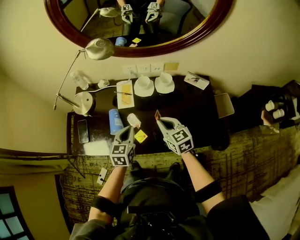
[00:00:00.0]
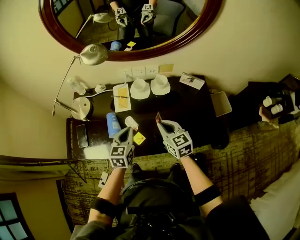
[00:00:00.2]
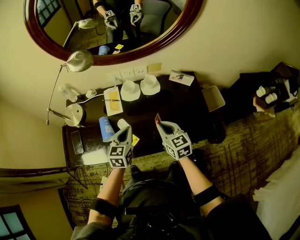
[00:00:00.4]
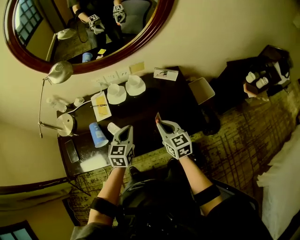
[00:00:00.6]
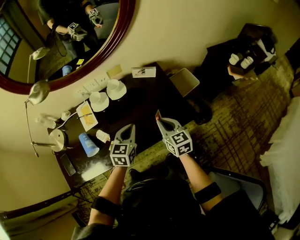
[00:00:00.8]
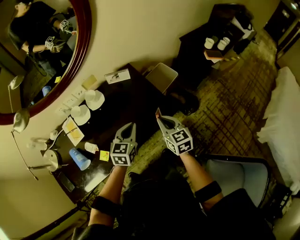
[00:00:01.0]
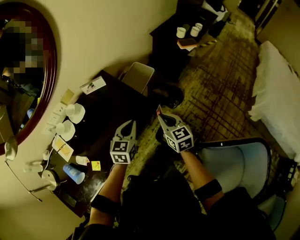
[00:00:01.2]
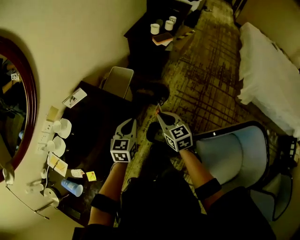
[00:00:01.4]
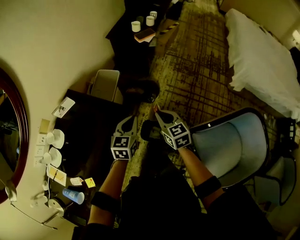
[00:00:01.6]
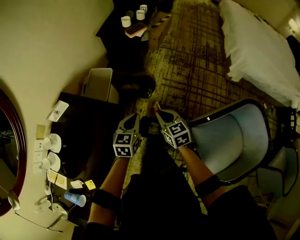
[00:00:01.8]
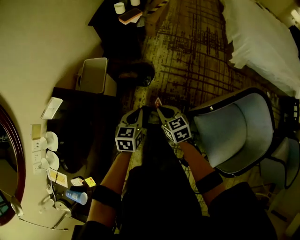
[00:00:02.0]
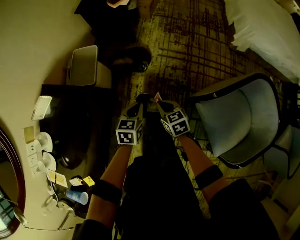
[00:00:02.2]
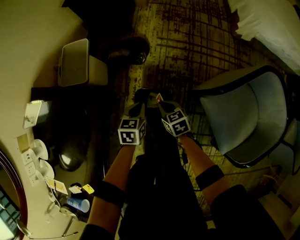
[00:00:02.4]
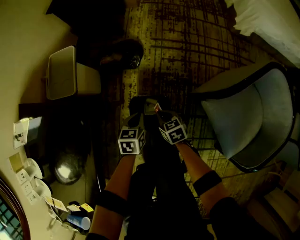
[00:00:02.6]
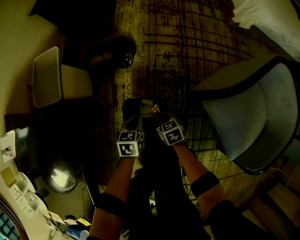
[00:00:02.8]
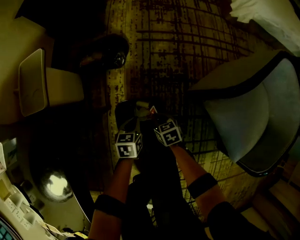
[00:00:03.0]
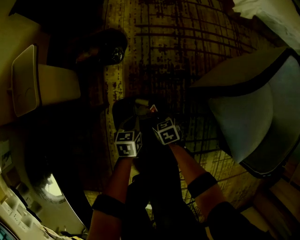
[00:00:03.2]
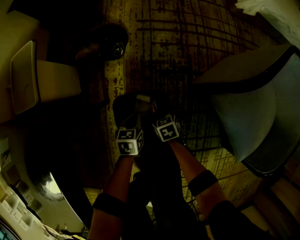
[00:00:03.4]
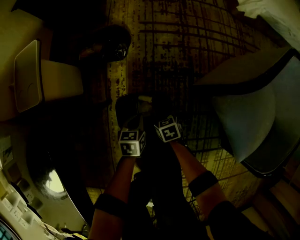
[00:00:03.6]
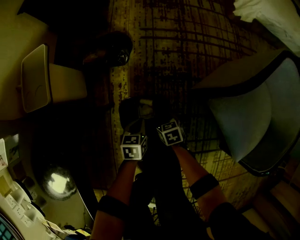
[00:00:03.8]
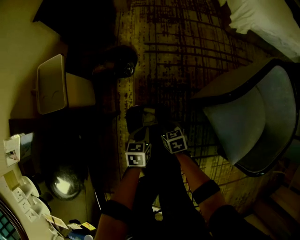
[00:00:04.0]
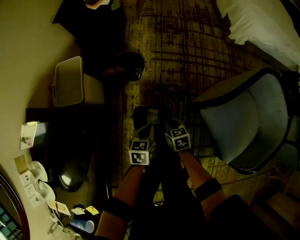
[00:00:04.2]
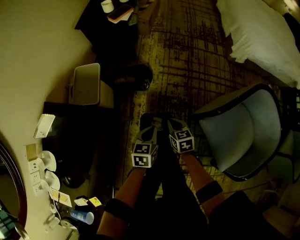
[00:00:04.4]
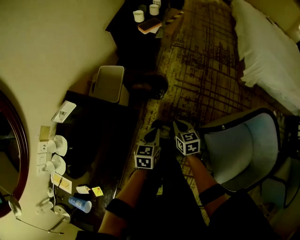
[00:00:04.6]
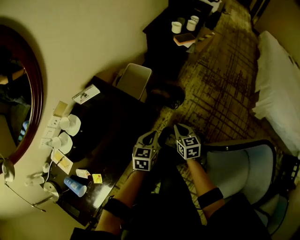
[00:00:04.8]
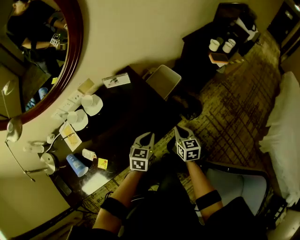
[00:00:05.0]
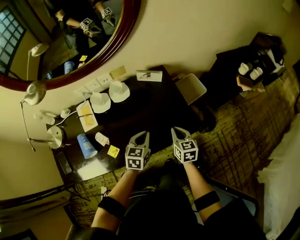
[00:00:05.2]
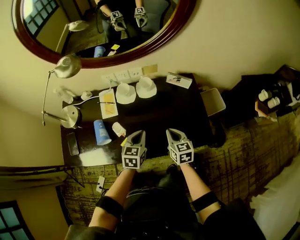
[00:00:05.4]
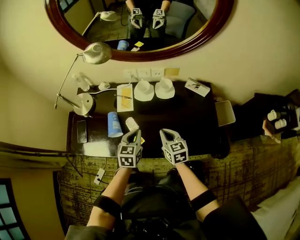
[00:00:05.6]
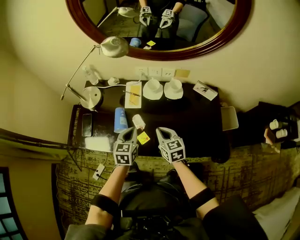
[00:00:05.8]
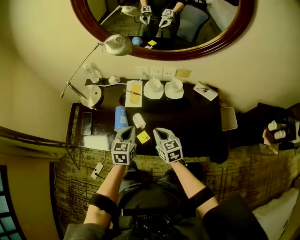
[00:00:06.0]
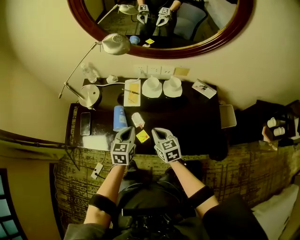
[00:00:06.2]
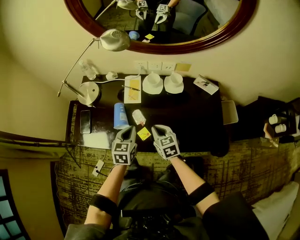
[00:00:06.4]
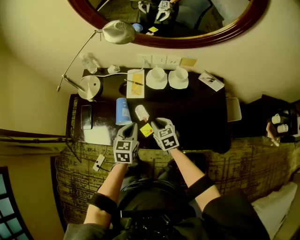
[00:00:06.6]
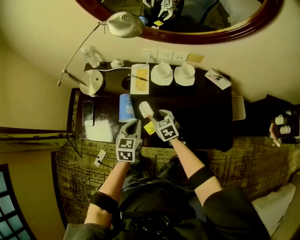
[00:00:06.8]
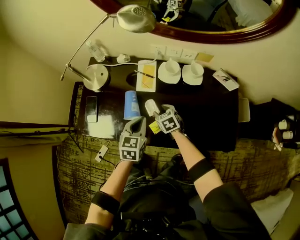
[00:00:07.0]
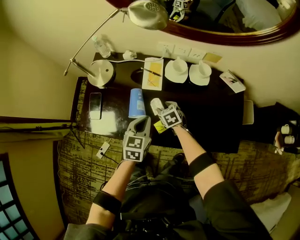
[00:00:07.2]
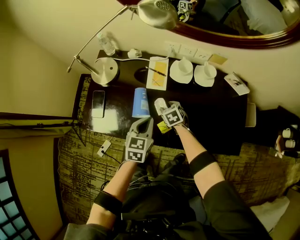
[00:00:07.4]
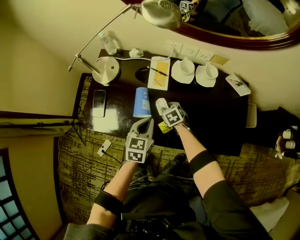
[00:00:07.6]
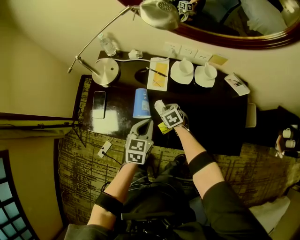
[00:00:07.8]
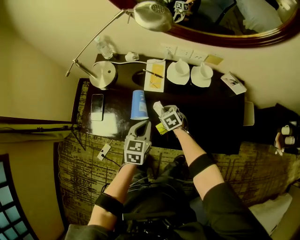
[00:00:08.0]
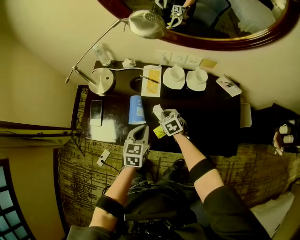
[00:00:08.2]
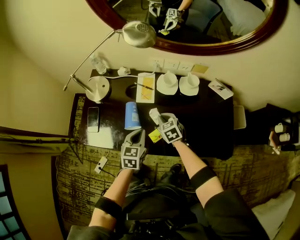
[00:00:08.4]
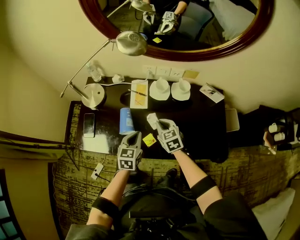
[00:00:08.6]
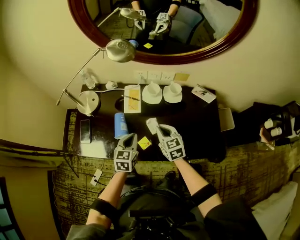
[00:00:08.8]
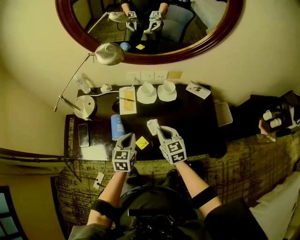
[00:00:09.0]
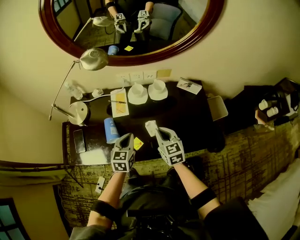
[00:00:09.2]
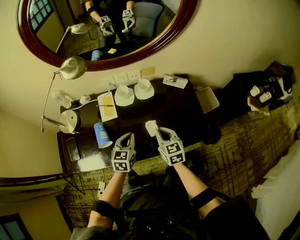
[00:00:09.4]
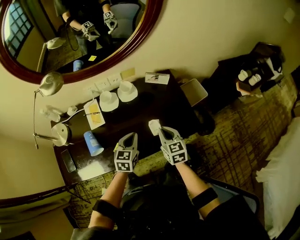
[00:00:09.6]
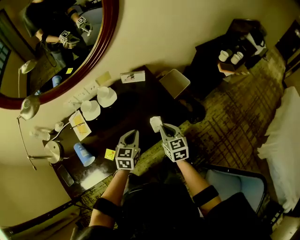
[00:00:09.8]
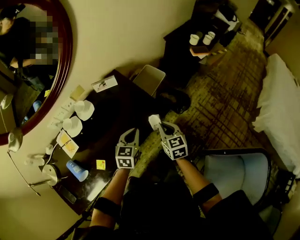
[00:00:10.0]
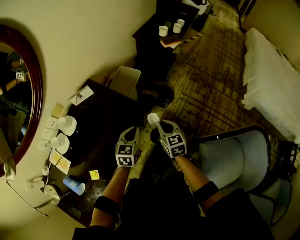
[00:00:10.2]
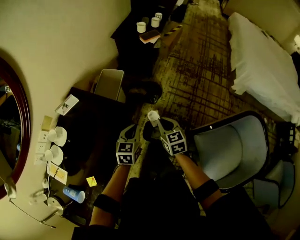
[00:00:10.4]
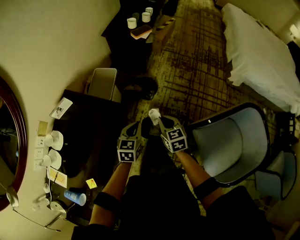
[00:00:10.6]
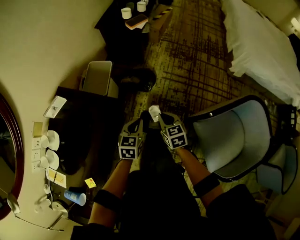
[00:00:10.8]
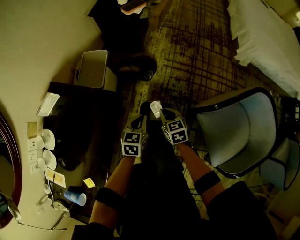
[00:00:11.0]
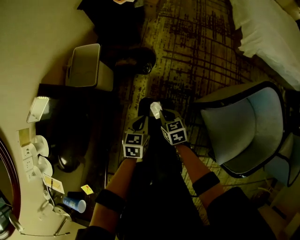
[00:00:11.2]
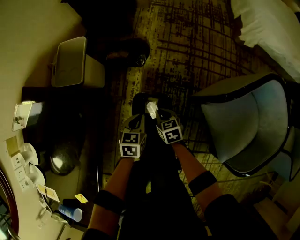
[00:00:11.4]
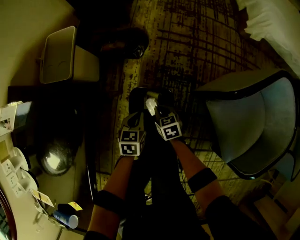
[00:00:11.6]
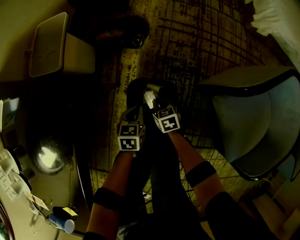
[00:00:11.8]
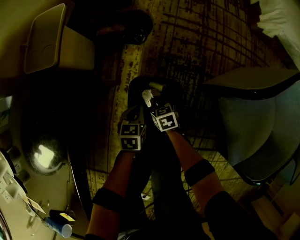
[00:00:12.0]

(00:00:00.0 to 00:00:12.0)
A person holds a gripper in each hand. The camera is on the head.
00:00:00.0 - 00:00:01.6: Both grippers are carried roughly 60 cm. The right gripper turns by roughly 70 degrees, while the left gripper rotates some 70 degrees.
00:00:01.6 - 00:00:03.0: Both grippers travel together downward, some 60 cm. The left gripper turns by approximately 30 degrees. Meanwhile the right gripper rotates some 40 degrees.
00:00:03.0 - 00:00:04.4: Both grippers travel together upward, some 35 cm.
00:00:04.4 - 00:00:06.0: The two grippers travel together, roughly 70 cm. The left gripper changes its angle by about 90 degrees, while the right gripper swivels approximately 90 degrees.
00:00:06.0 - 00:00:07.6: The left gripper moves downward, some 5 cm. The right gripper heads downward and forward, covering roughly 15 cm, and opens up.
00:00:07.6 - 00:00:09.0: The left gripper shifts by about 5 cm. The right gripper shifts about 15 cm upward, to the right and backward, and changes its angle by about 20 degrees.
00:00:09.0 - 00:00:10.4: The pair of grippers is taken approximately 60 cm. The left gripper changes its angle by some 70 degrees. The right gripper turns by approximately 70 degrees.
00:00:10.4 - 00:00:12.0: Both grippers travel together downward, approximately 60 cm. The right gripper turns by some 30 degrees; the left gripper swivels roughly 30 degrees.

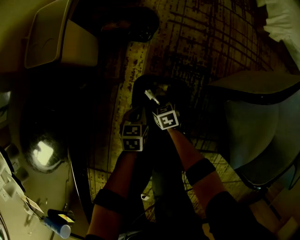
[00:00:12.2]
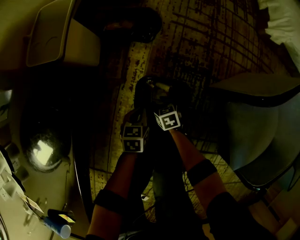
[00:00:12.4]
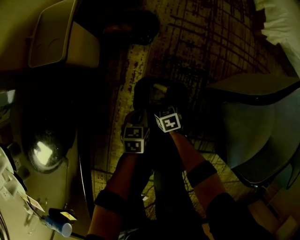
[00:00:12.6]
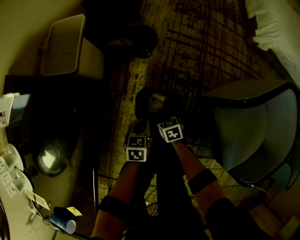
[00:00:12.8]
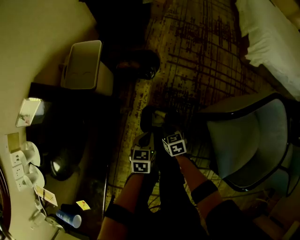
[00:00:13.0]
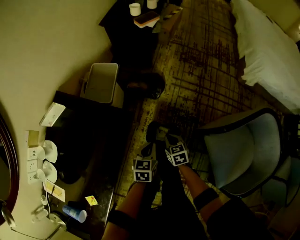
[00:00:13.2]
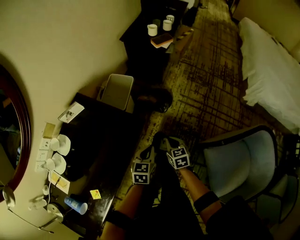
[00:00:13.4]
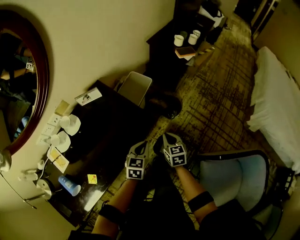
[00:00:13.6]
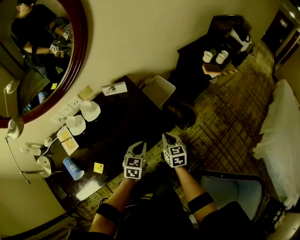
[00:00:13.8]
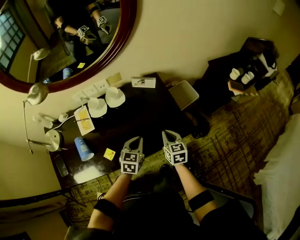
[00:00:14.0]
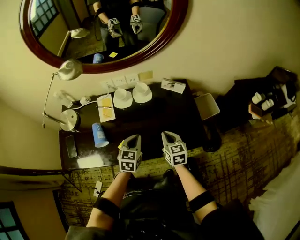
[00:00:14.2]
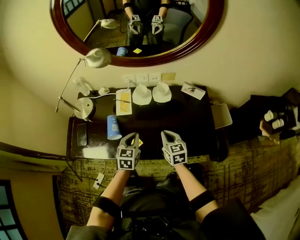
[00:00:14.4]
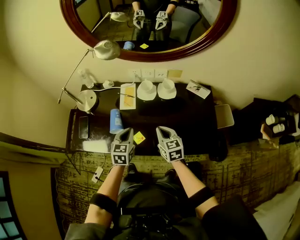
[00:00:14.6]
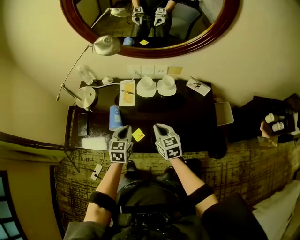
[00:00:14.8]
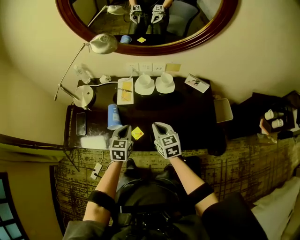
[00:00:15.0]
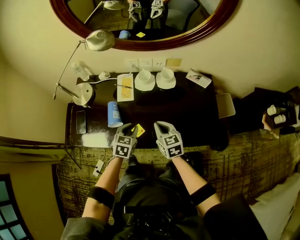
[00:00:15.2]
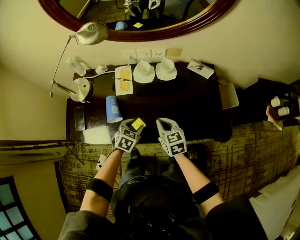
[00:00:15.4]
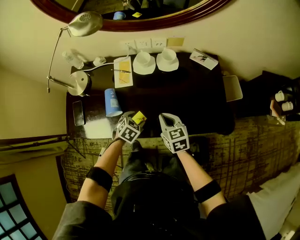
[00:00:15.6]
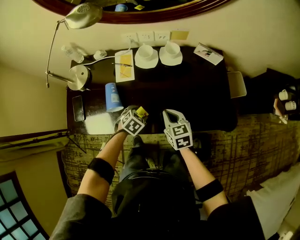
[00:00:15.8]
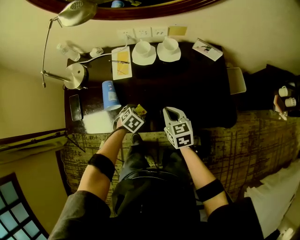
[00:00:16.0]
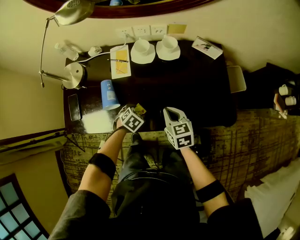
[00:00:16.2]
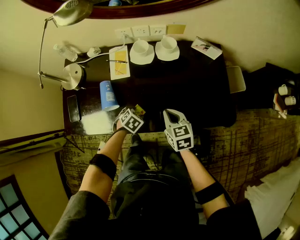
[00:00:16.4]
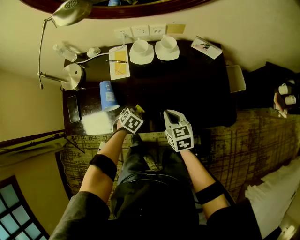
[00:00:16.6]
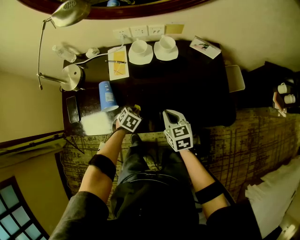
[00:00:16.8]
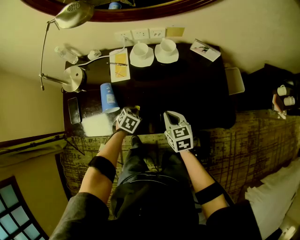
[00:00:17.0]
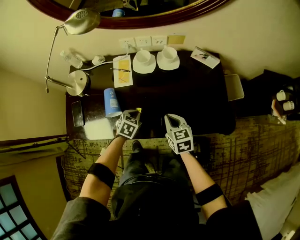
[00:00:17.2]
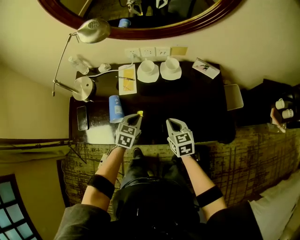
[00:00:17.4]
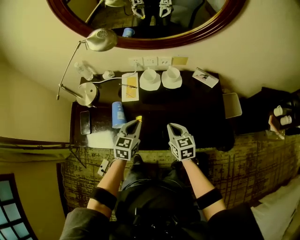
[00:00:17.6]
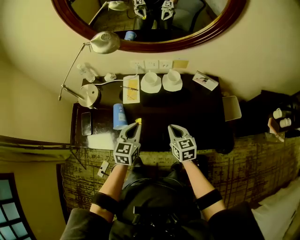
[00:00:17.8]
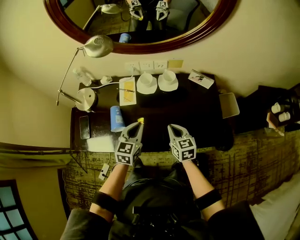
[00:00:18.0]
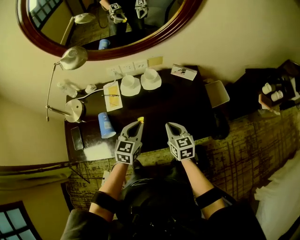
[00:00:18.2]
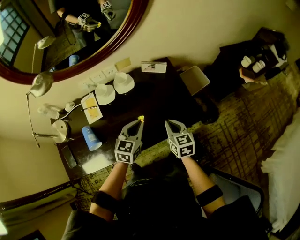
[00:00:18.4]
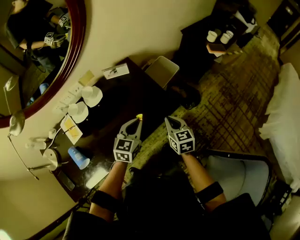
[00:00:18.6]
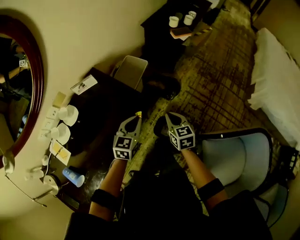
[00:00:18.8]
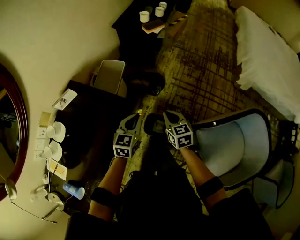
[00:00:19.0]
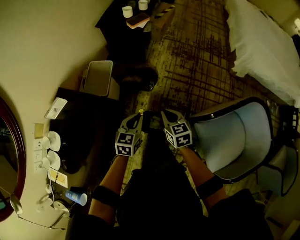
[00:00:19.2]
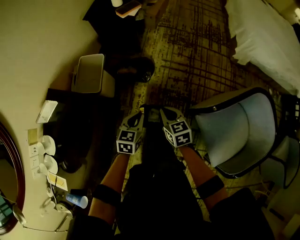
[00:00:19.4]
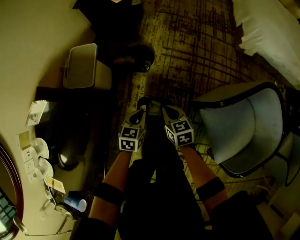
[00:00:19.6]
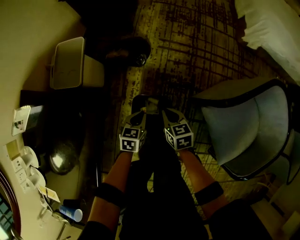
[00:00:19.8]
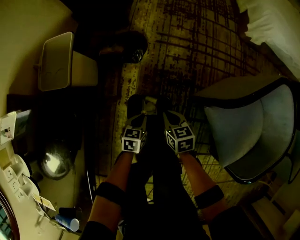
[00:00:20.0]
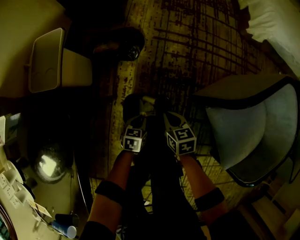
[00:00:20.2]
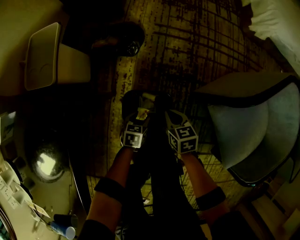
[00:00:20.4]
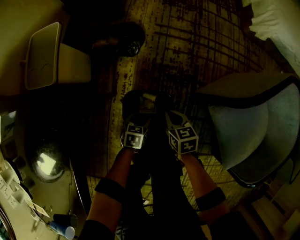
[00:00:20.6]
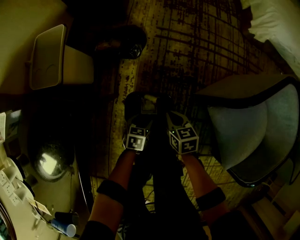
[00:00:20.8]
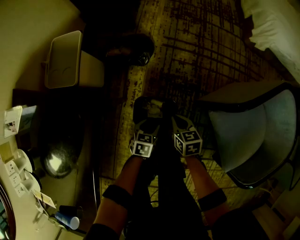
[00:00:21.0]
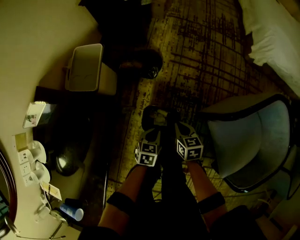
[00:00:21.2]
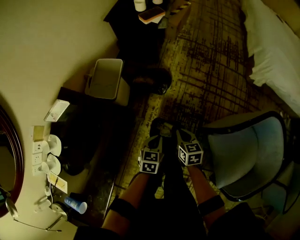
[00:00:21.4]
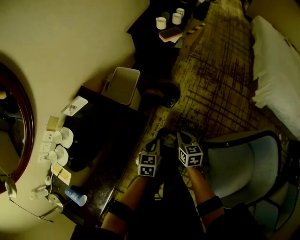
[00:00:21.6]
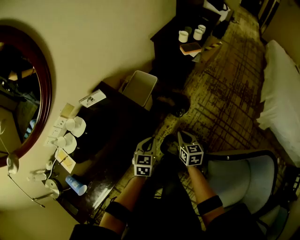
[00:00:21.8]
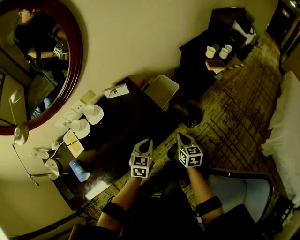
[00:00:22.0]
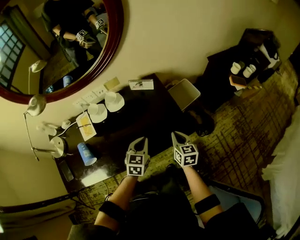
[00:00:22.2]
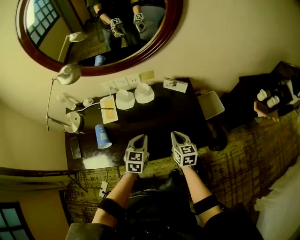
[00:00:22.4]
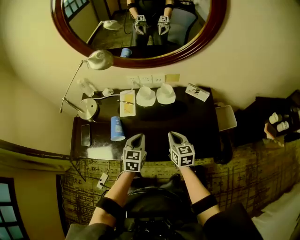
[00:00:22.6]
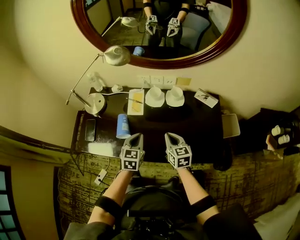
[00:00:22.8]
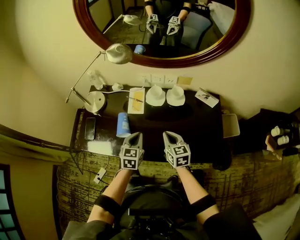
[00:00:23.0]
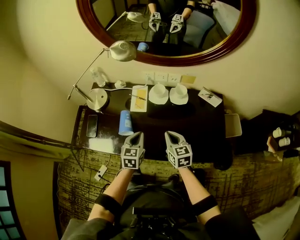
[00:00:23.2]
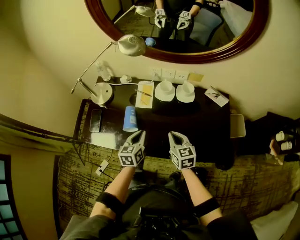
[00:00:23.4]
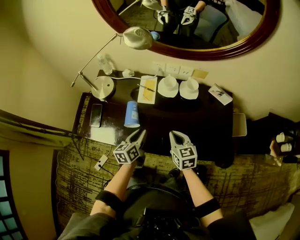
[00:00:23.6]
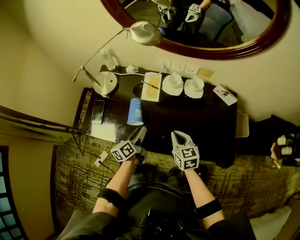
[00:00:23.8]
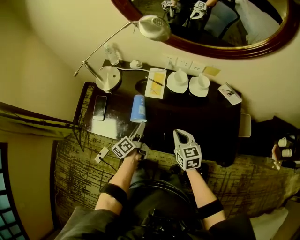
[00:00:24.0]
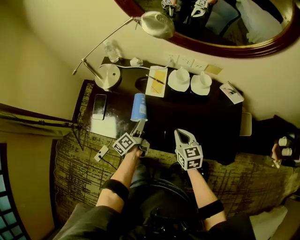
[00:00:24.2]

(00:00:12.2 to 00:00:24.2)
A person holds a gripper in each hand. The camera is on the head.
00:00:12.2 - 00:00:13.8: Both grippers move upward, about 60 cm. The right gripper changes its angle by roughly 40 degrees, while the left gripper changes its angle by some 40 degrees.
00:00:13.8 - 00:00:15.2: The right gripper changes place by some 40 cm, and rotates approximately 50 degrees. Meanwhile the left gripper changes place by approximately 35 cm, and turns by about 40 degrees.
00:00:15.2 - 00:00:16.6: The right gripper goes roughly 10 cm downward, while the left gripper heads downward, covering approximately 20 cm, turns by some 30 degrees, and opens, then closes again.
00:00:16.6 - 00:00:18.2: The left gripper travels upward by approximately 25 cm, tilts its fingers about 50 degrees upward, and closes up, while the right gripper shifts about 10 cm upward and to the right.
00:00:18.2 - 00:00:19.8: The pair of grippers is taken some 60 cm. The left gripper turns by approximately 70 degrees, while the right gripper swivels roughly 70 degrees.
00:00:19.8 - 00:00:21.2: The left gripper travels downward and back again, some 20 cm each way, and opens, then closes once more. The right gripper reaches some 15 cm downward, then returns.
00:00:21.2 - 00:00:22.6: Both grippers are carried roughly 60 cm. The right gripper turns by roughly 80 degrees. Meanwhile the left gripper changes its angle by roughly 80 degrees.
00:00:22.6 - 00:00:24.2: The left gripper is displaced to the left and downward by roughly 25 cm, twists approximately 80 degrees counterclockwise, seen from behind, and opens its fingers, while the right gripper heads to the left, covering approximately 15 cm.
